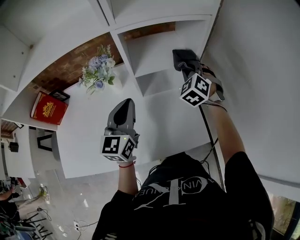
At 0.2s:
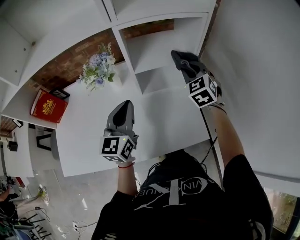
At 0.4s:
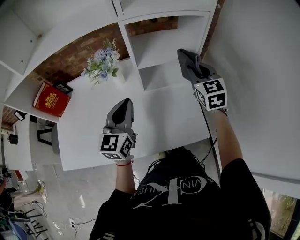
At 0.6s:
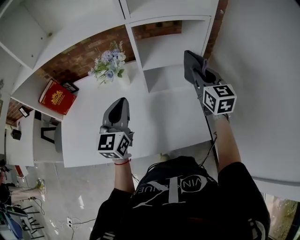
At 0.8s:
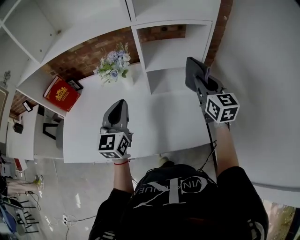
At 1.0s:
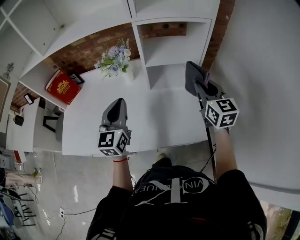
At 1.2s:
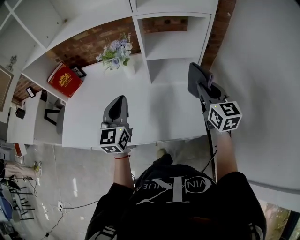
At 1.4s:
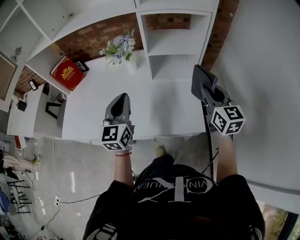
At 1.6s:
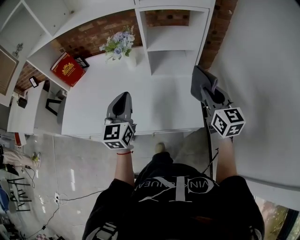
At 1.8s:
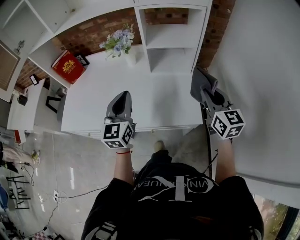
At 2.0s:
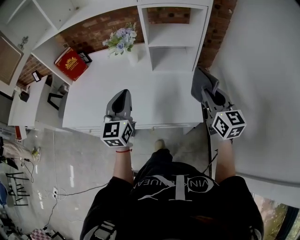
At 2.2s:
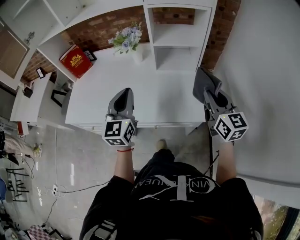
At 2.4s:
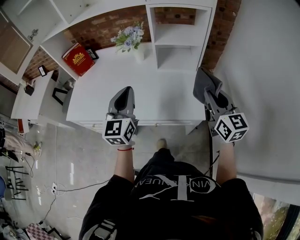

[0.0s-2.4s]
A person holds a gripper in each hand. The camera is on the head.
0.0s to 1.2s: The left gripper is displaced backward by about 10 cm, while the right gripper moves backward, about 20 cm, and twists about 50 degrees clockwise, seen from behind.
1.2s to 2.4s: The grippers both shift backward by about 15 cm.

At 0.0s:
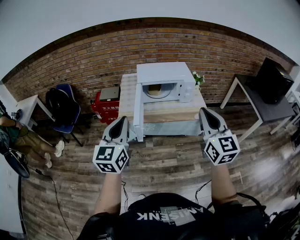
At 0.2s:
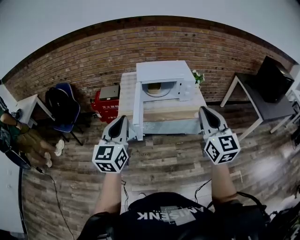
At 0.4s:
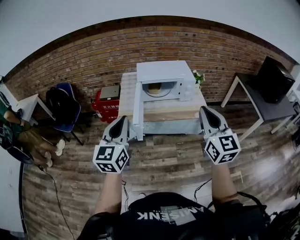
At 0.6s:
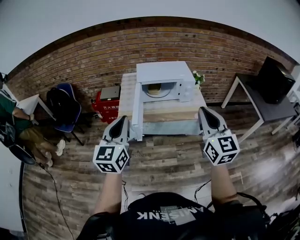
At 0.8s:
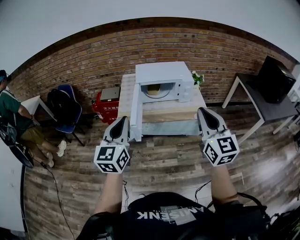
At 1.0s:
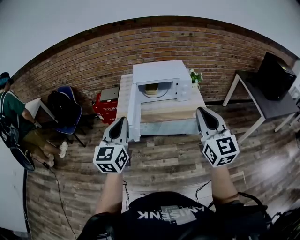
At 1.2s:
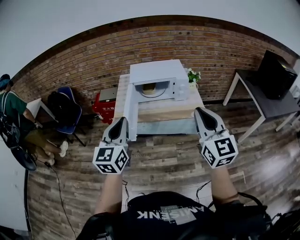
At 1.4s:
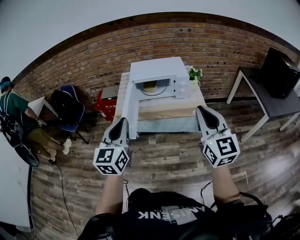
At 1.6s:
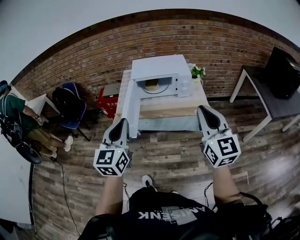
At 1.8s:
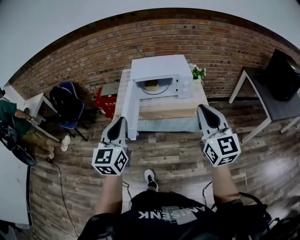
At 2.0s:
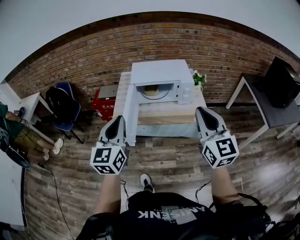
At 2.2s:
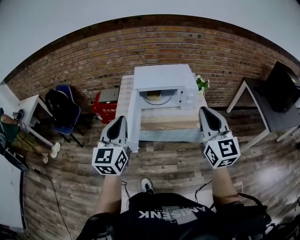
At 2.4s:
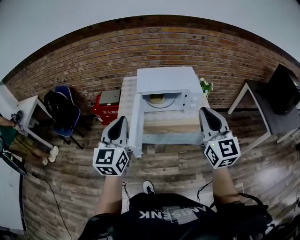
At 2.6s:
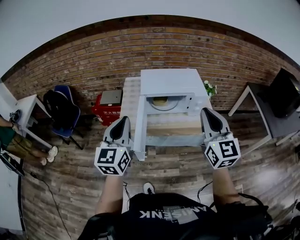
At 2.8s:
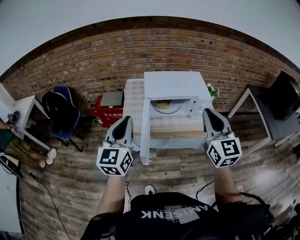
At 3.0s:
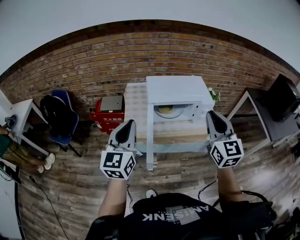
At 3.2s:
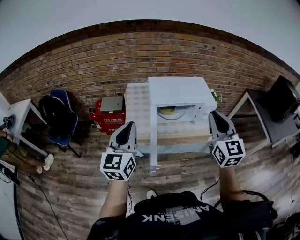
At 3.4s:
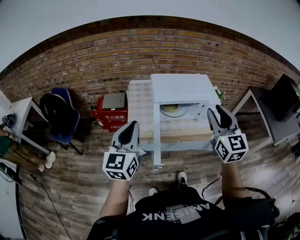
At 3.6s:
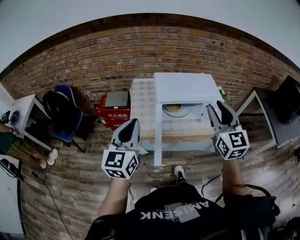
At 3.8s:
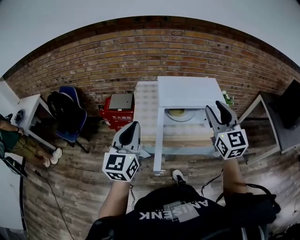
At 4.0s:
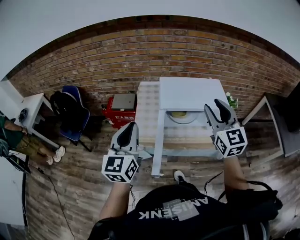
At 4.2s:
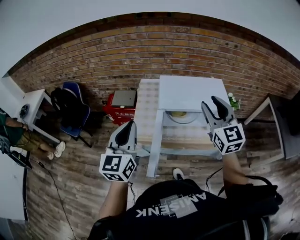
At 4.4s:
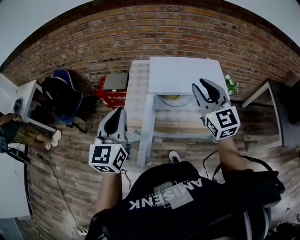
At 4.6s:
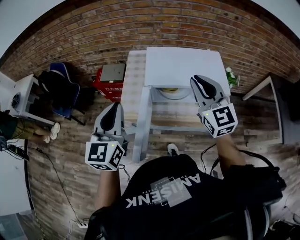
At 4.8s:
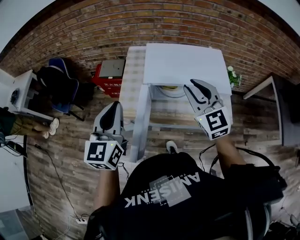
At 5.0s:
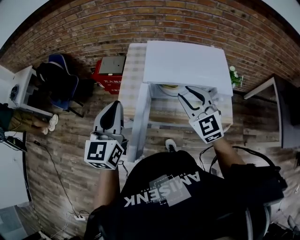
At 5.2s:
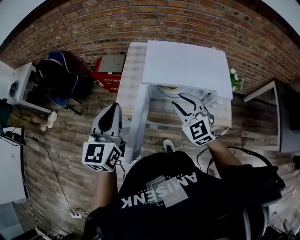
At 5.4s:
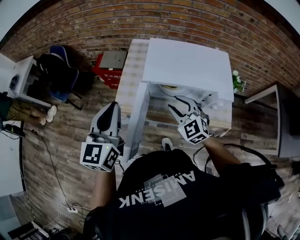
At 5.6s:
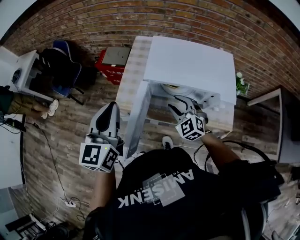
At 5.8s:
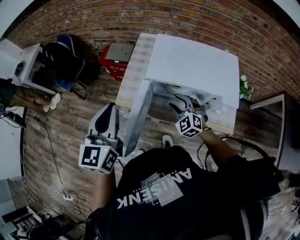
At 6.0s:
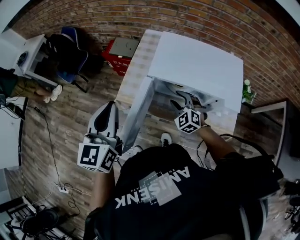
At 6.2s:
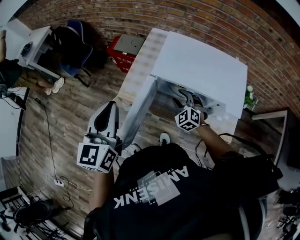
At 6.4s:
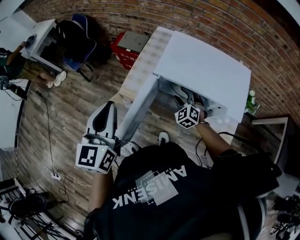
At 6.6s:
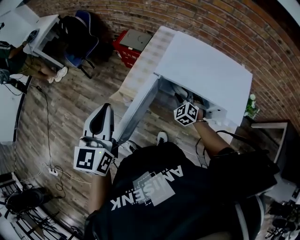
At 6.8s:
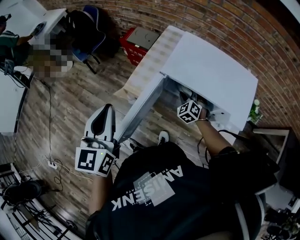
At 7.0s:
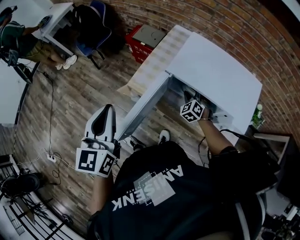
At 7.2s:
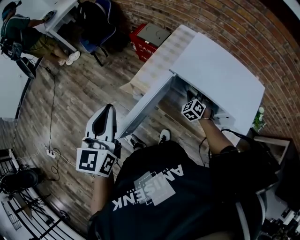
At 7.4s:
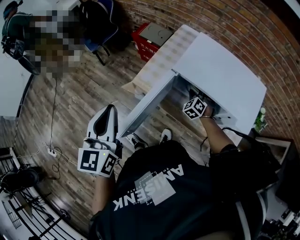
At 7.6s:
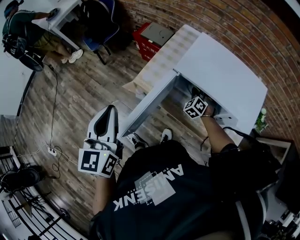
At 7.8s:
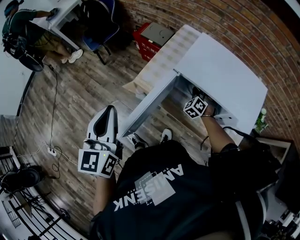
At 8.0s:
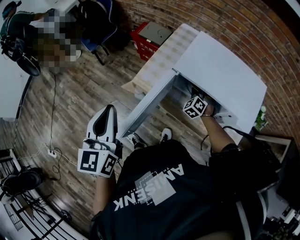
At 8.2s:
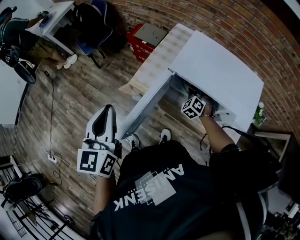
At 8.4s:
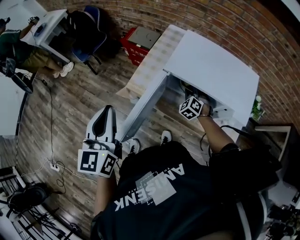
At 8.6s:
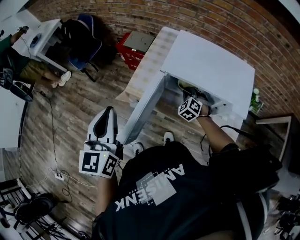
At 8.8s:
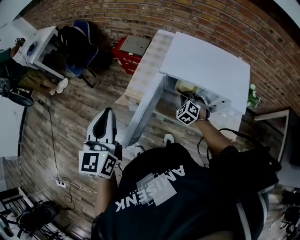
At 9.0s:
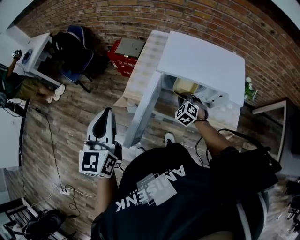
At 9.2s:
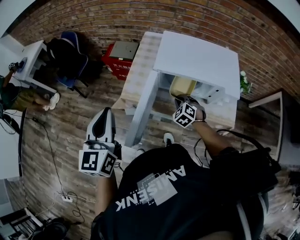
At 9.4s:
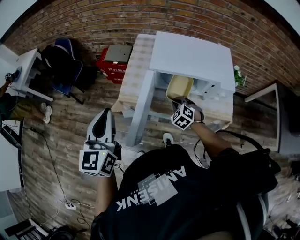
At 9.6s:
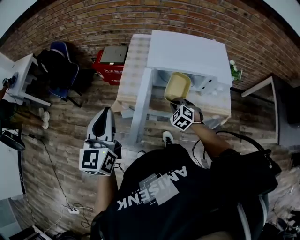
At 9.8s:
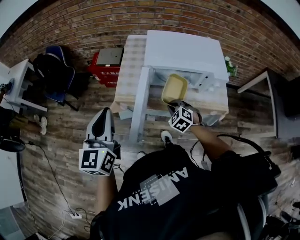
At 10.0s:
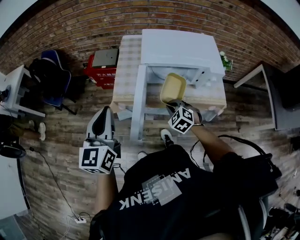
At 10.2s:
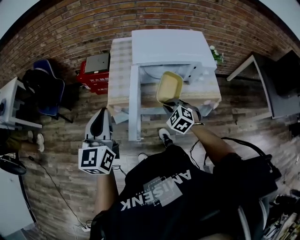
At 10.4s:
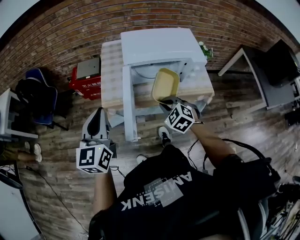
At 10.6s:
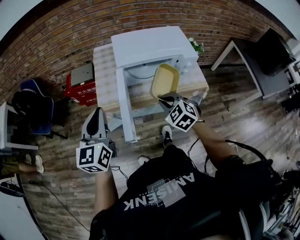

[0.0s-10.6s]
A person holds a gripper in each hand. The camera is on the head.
0.0s to 1.6s: Both grippers move to the right, roughly 10 cm.
1.6s to 3.0s: The grippers both shift forward and to the left by approximately 30 cm.
3.0s to 4.6s: The right gripper is displaced forward by roughly 20 cm, changes its angle by some 20 degrees, and opens and closes again; the left gripper moves forward, some 10 cm.
4.6s to 6.0s: The right gripper heads downward, covering some 30 cm, tips its fingers downward by roughly 30 degrees, and opens up.
6.0s to 7.6s: The left gripper goes roughly 10 cm backward and to the left, and turns by some 20 degrees. The right gripper is displaced forward and downward by roughly 10 cm.
7.6s to 9.0s: The right gripper goes some 10 cm backward, and closes up.
9.0s to 10.6s: The right gripper is displaced backward and upward by some 25 cm, and rotates roughly 20 degrees. Meanwhile the left gripper rotates roughly 30 degrees.

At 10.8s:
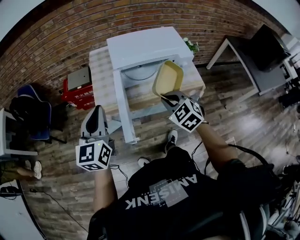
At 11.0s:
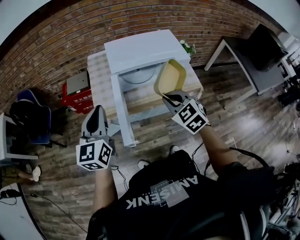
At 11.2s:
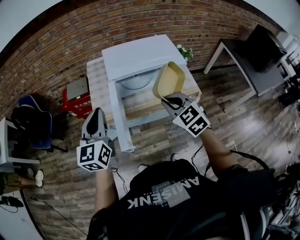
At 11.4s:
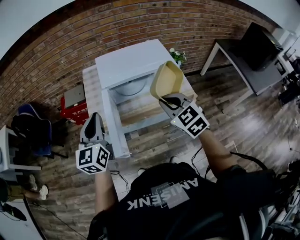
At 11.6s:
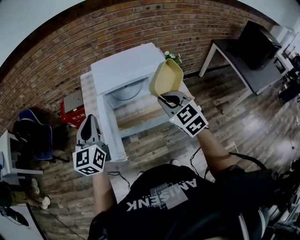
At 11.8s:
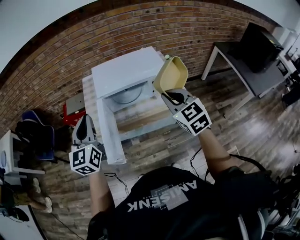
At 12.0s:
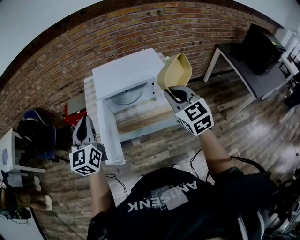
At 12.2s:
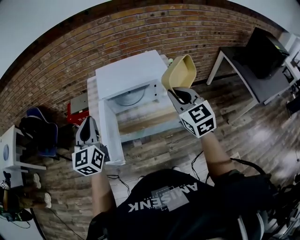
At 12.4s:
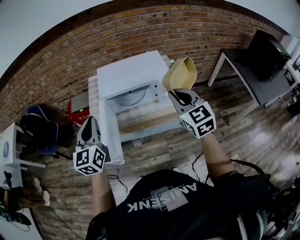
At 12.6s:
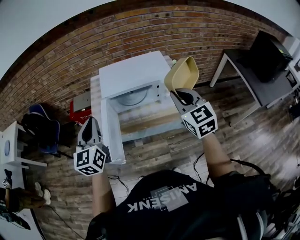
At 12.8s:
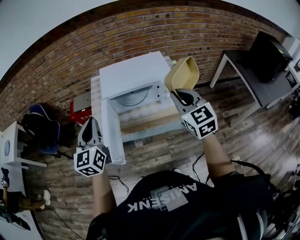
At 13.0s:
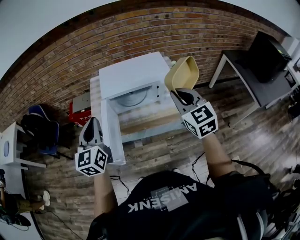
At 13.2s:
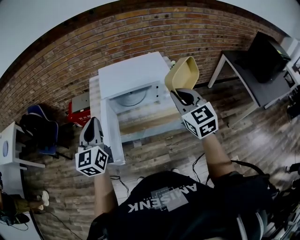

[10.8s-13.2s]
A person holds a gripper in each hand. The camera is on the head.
10.8s to 12.0s: The left gripper travels to the right and upward by approximately 10 cm. Meanwhile the right gripper travels to the right and upward by roughly 25 cm, and rotates roughly 30 degrees.
12.0s to 13.2s: The grippers stay close to where they were, moving slightly.

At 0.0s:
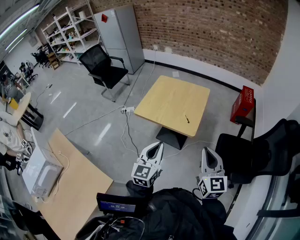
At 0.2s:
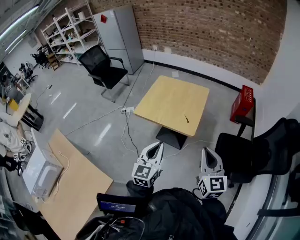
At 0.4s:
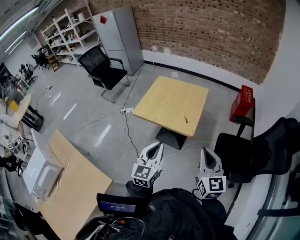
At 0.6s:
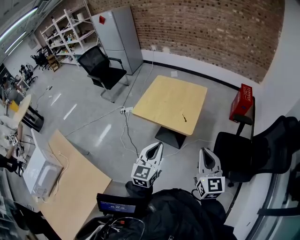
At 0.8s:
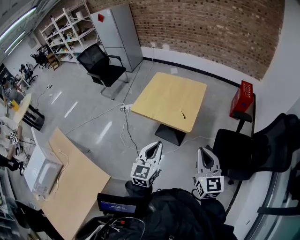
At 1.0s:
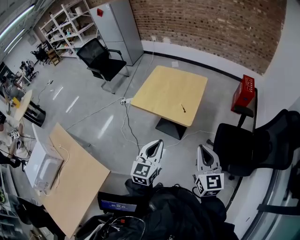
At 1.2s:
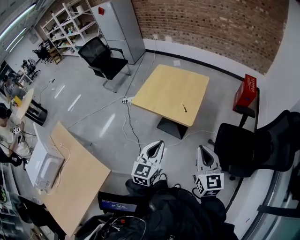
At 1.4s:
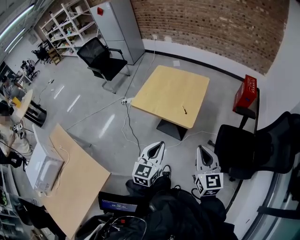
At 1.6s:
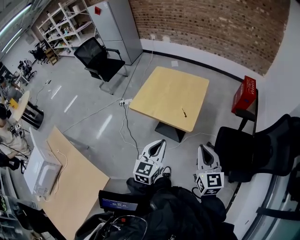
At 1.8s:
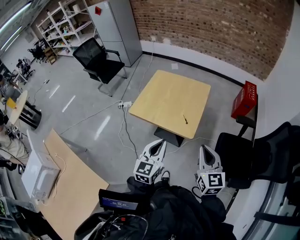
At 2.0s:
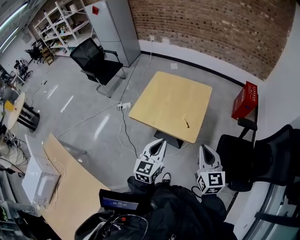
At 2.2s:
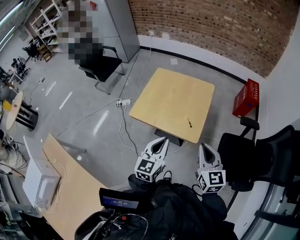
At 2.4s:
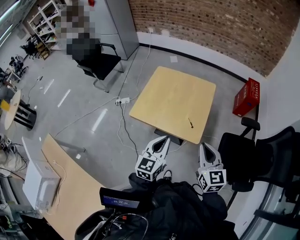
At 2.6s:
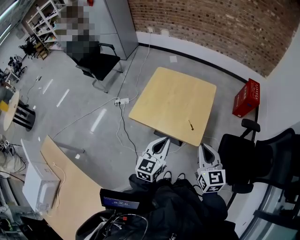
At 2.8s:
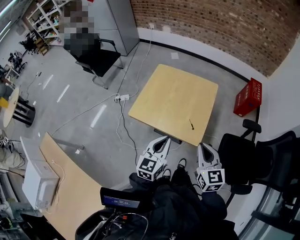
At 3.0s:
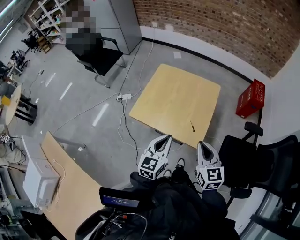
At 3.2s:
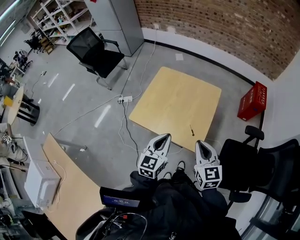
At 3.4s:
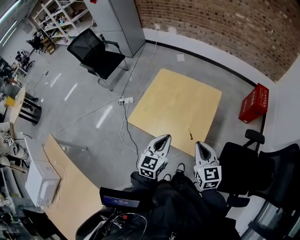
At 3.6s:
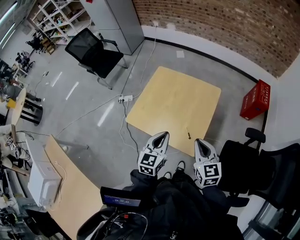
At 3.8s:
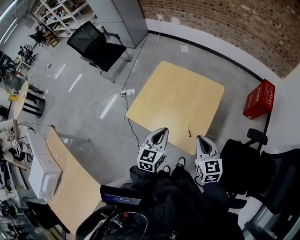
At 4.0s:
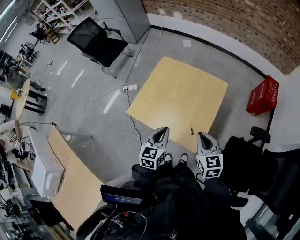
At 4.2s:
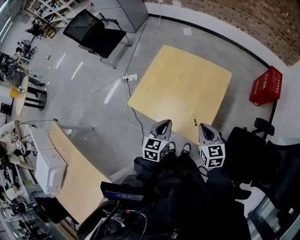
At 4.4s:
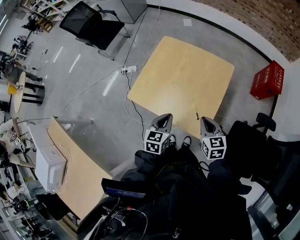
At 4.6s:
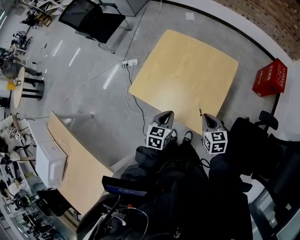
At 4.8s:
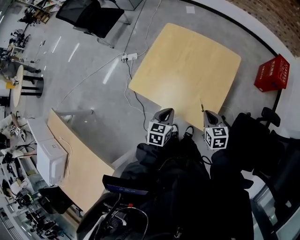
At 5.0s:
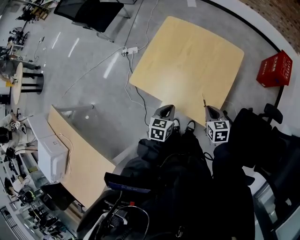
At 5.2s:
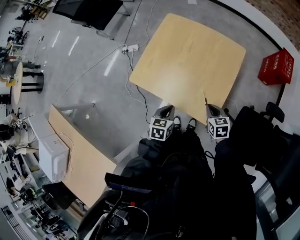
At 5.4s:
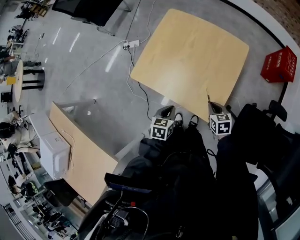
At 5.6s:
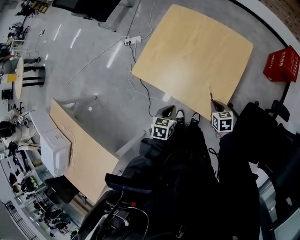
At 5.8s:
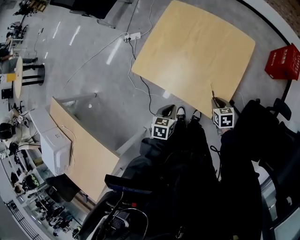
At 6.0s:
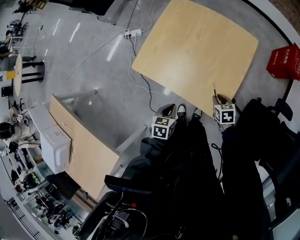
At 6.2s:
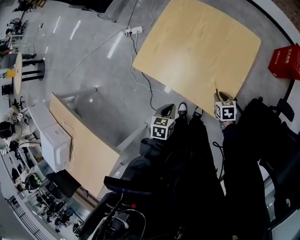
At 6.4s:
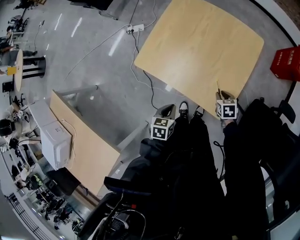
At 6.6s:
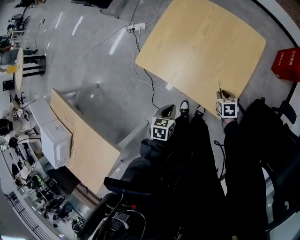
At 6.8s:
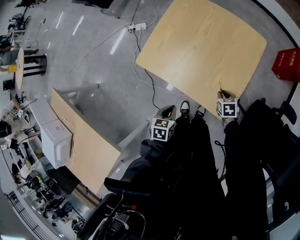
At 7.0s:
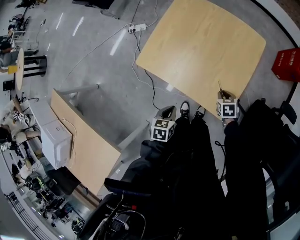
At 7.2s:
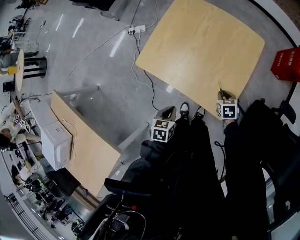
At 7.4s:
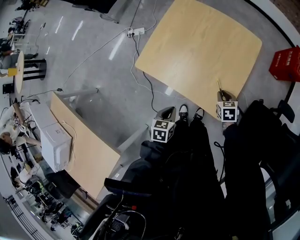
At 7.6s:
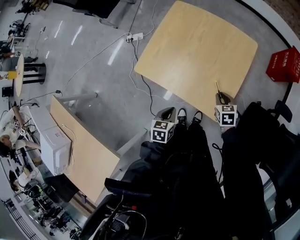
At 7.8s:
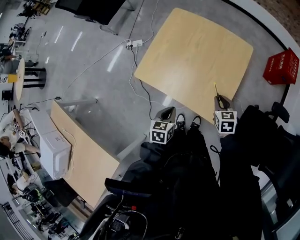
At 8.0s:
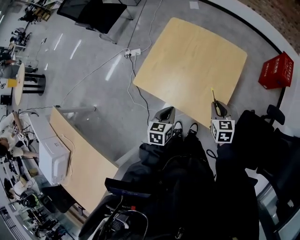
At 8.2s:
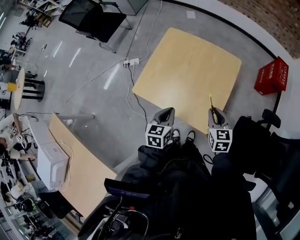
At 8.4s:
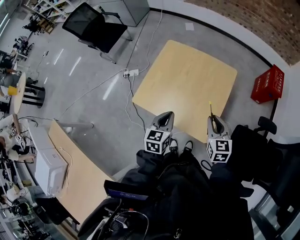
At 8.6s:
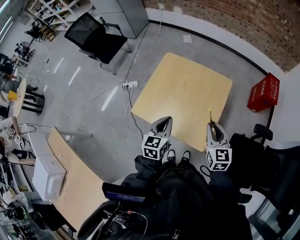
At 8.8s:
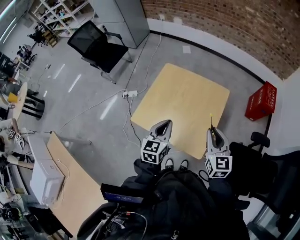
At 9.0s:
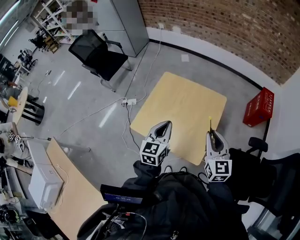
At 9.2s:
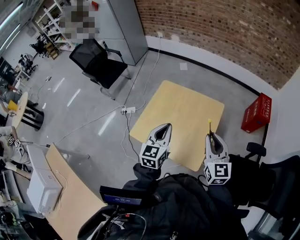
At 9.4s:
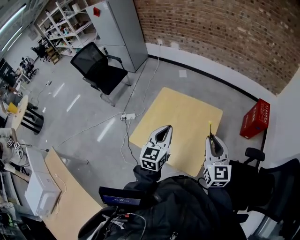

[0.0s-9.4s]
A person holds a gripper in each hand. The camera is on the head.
0.0s to 1.6s: The left gripper goes about 5 cm to the right; the right gripper shifts by some 5 cm.
1.6s to 3.2s: The two grippers go about 25 cm forward.
3.2s to 4.8s: The right gripper moves downward and forward, about 25 cm, and swivels approximately 30 degrees; the left gripper heads downward, covering roughly 20 cm, and rotates about 30 degrees.
4.8s to 6.2s: The left gripper moves downward, backward and to the left, roughly 15 cm; the right gripper moves downward, some 15 cm, and changes its angle by some 20 degrees.
6.2s to 7.8s: The right gripper shifts approximately 10 cm upward; the left gripper ends up approximately 5 cm from where it was.
7.8s to 9.4s: The left gripper goes roughly 35 cm upward and forward, and angles its fingers upward, by about 40 degrees, while the right gripper goes roughly 35 cm upward, and points its fingers about 40 degrees further upward.
